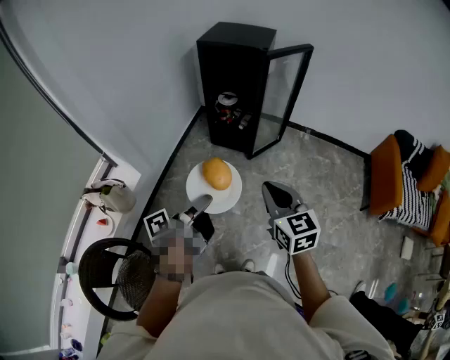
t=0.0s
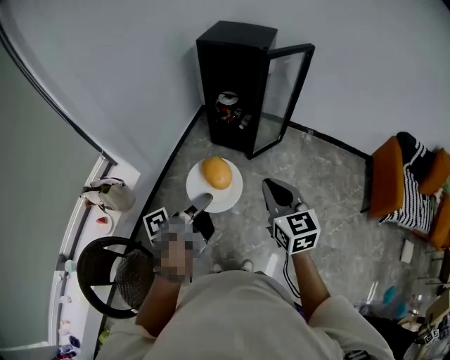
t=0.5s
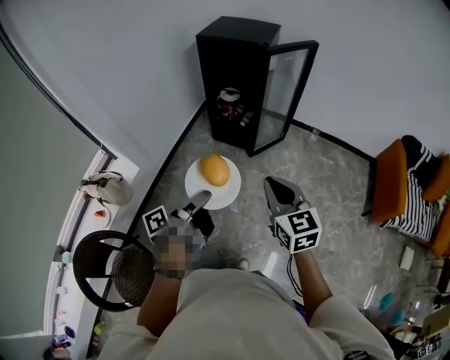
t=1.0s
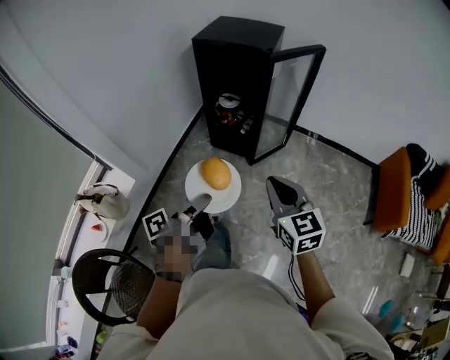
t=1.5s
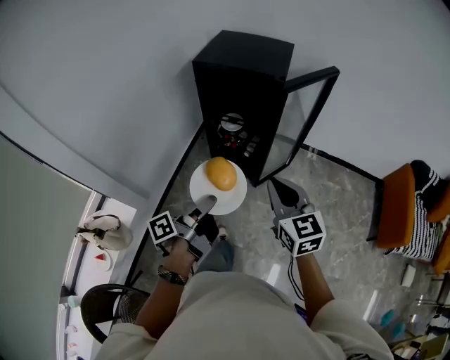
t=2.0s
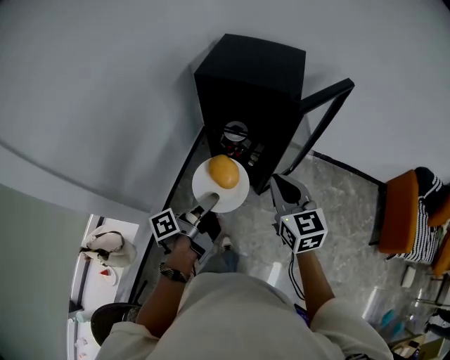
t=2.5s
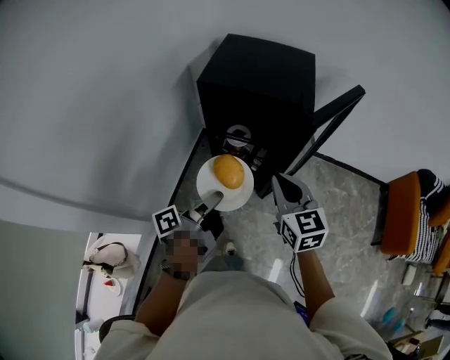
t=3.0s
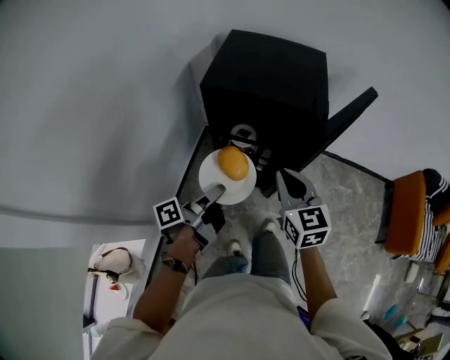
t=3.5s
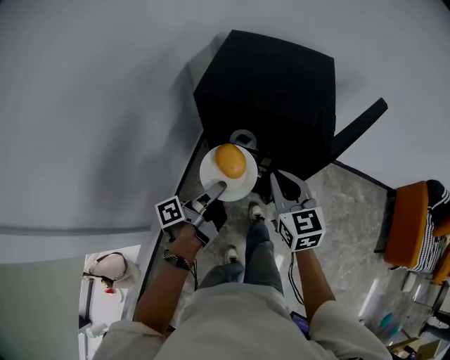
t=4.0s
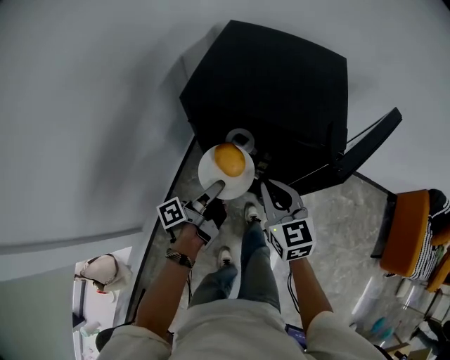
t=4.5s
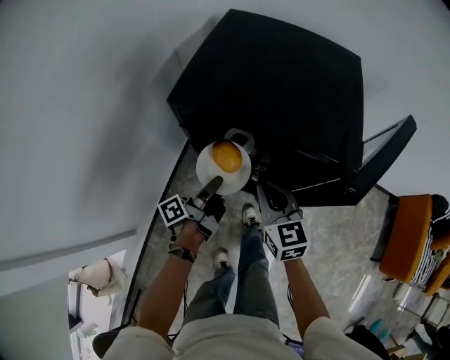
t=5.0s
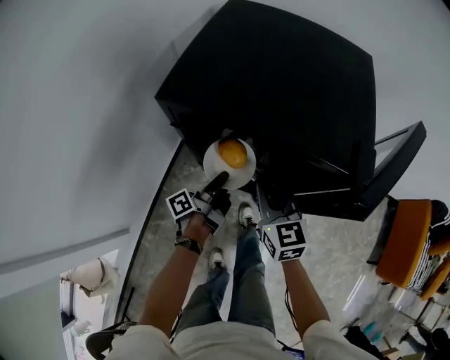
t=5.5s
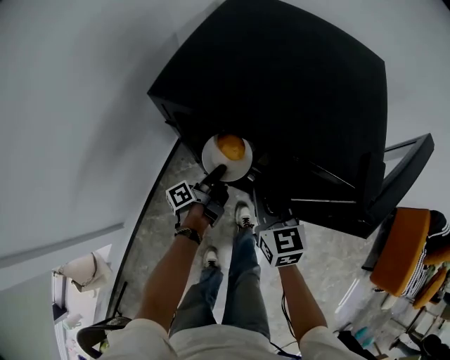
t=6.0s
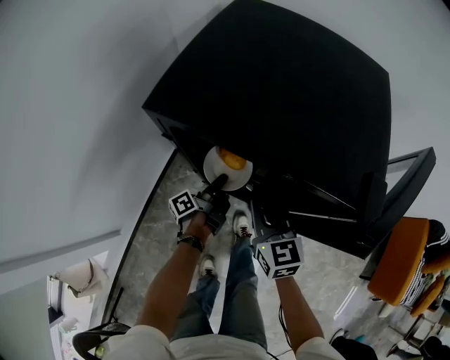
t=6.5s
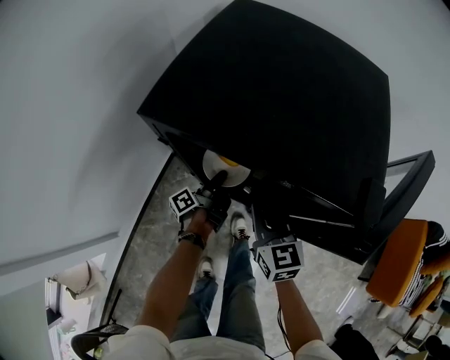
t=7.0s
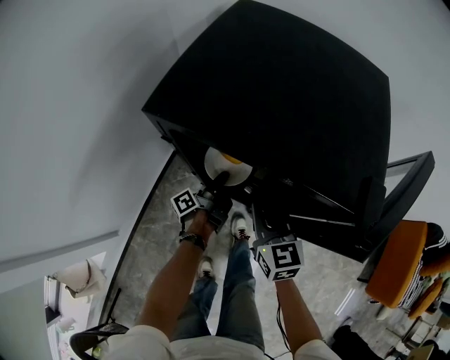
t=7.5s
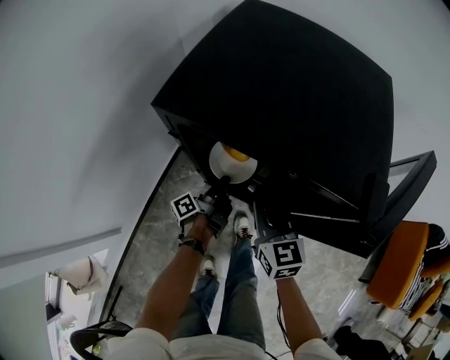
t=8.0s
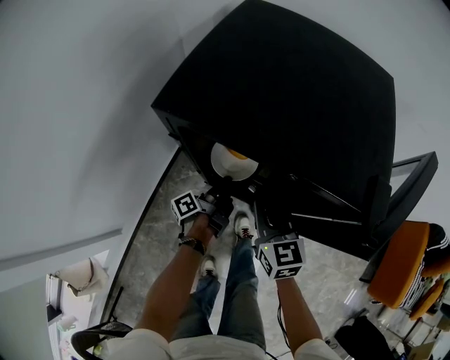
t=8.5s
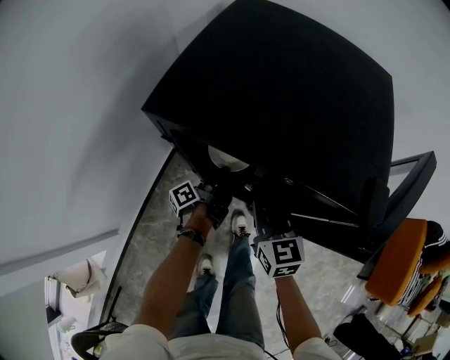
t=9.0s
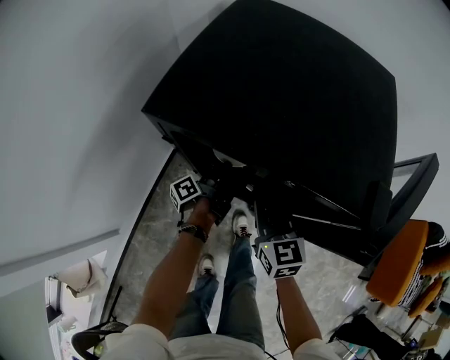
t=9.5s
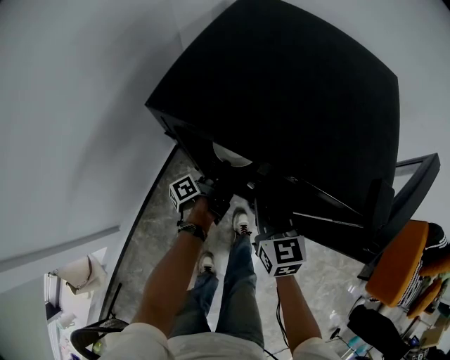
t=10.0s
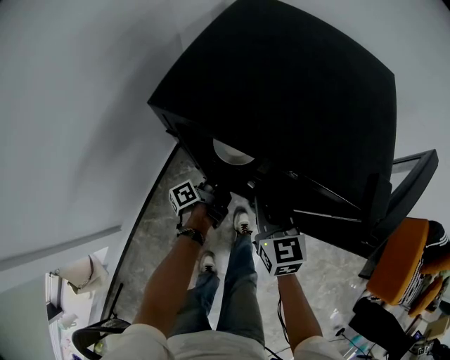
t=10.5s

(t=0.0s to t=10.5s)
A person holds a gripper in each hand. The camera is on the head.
t=0.0s - t=2.0s: The right gripper shifts by roughly 25 cm.
t=2.0s - t=4.0s: The right gripper ends up approximately 30 cm from where it was.
t=4.0s - t=6.5s: The right gripper travels downward by about 15 cm.

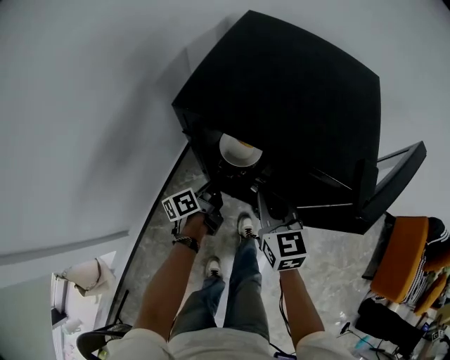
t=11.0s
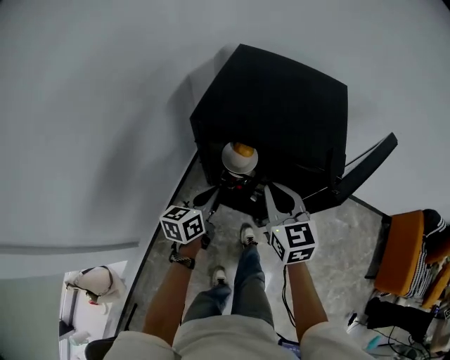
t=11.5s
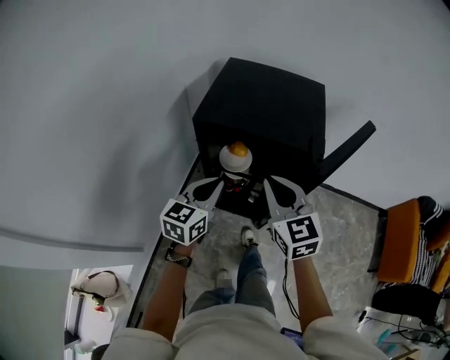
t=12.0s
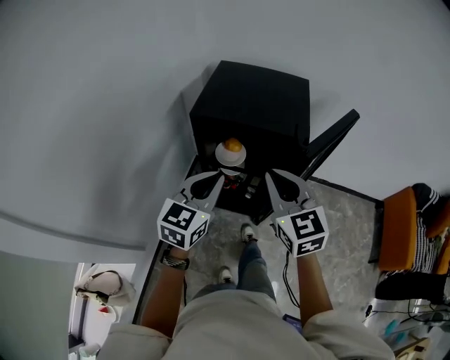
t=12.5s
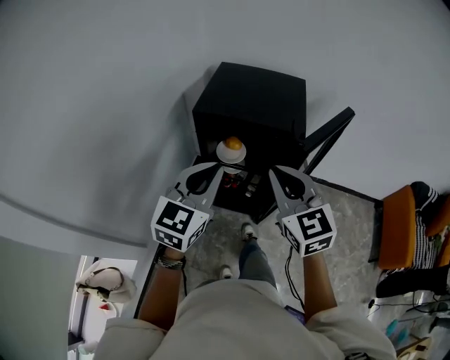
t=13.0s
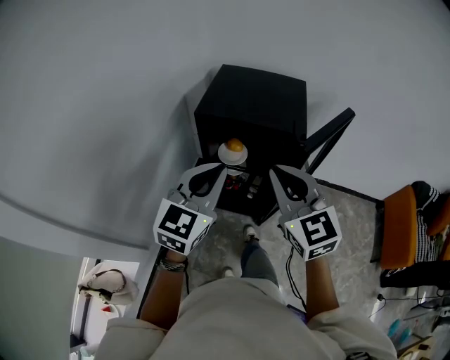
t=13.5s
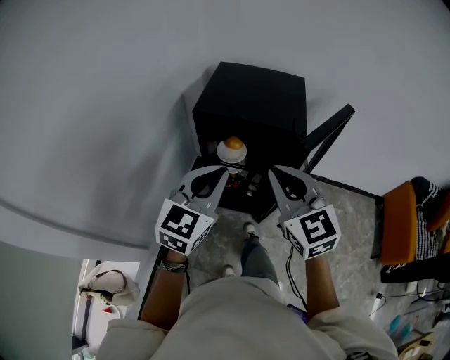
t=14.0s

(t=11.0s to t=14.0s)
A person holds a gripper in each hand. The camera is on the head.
t=11.0s - t=12.5s: The right gripper goes some 25 cm upward.
t=12.5s - t=14.0s: The right gripper changes place by about 5 cm.

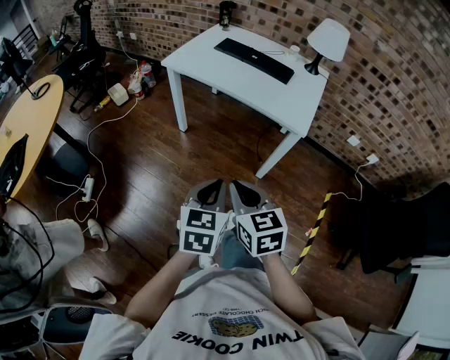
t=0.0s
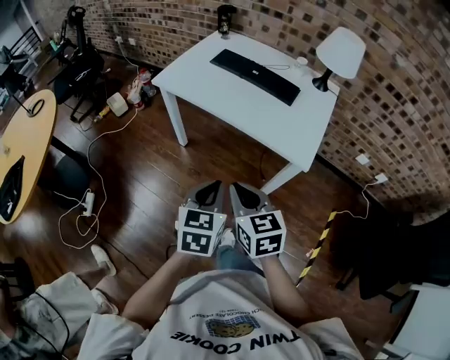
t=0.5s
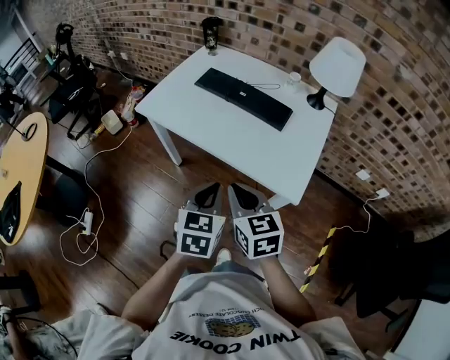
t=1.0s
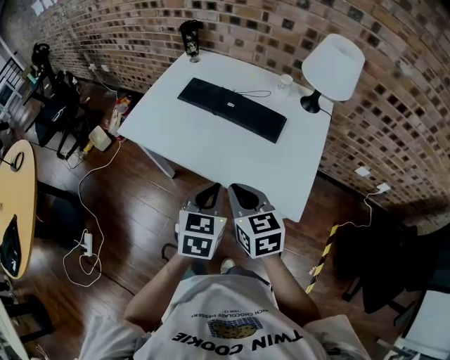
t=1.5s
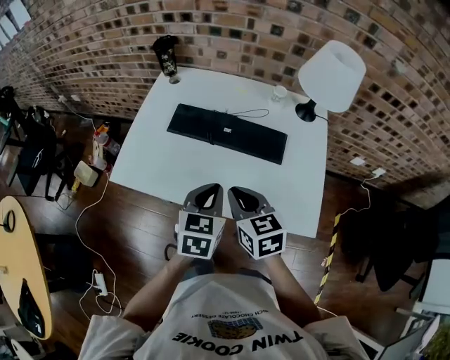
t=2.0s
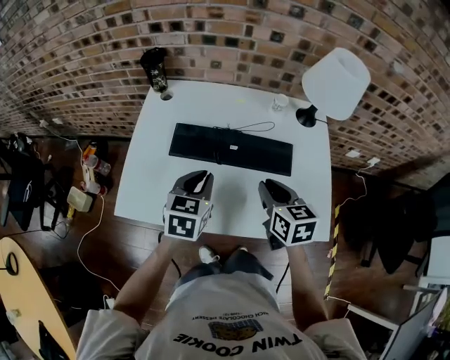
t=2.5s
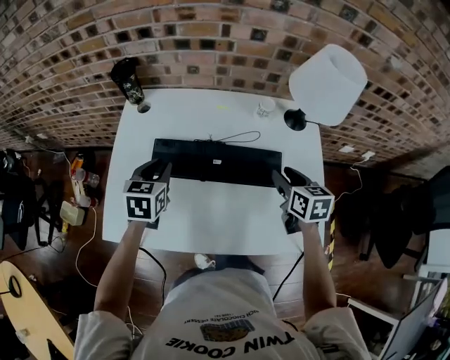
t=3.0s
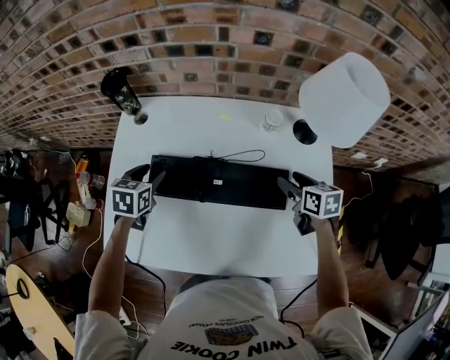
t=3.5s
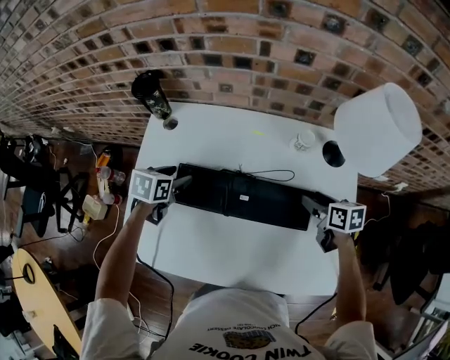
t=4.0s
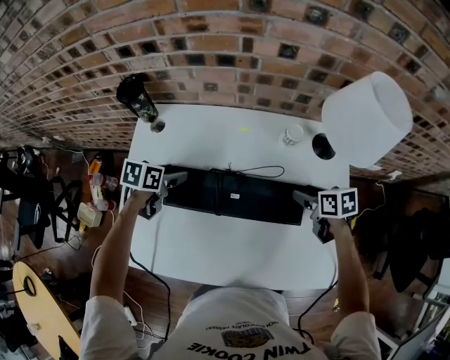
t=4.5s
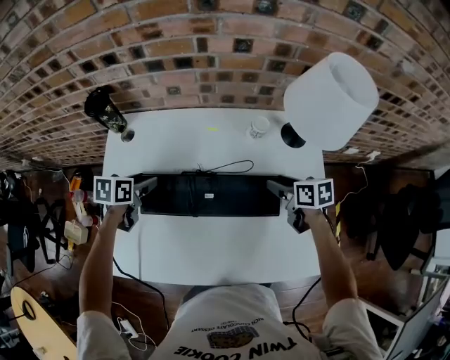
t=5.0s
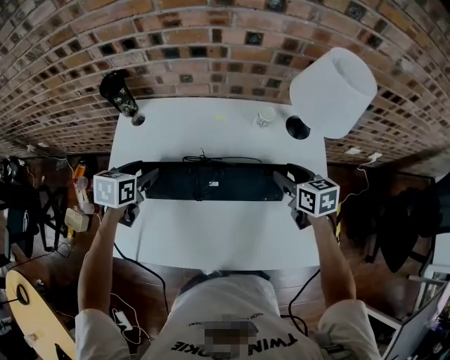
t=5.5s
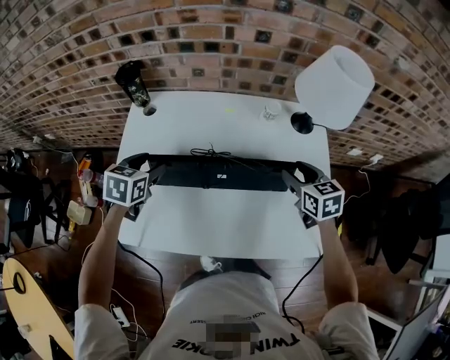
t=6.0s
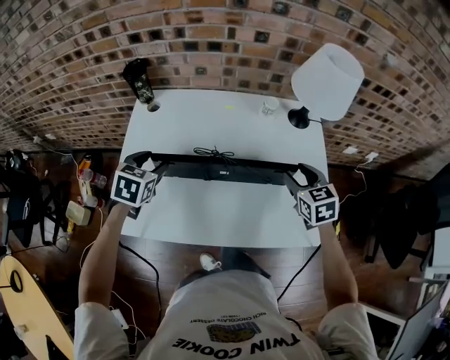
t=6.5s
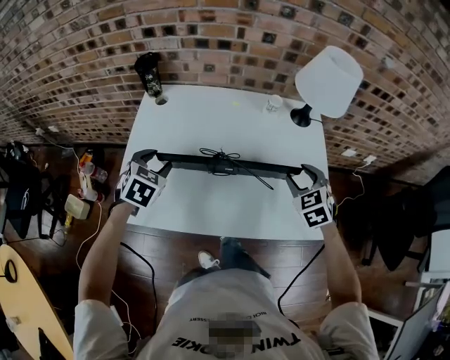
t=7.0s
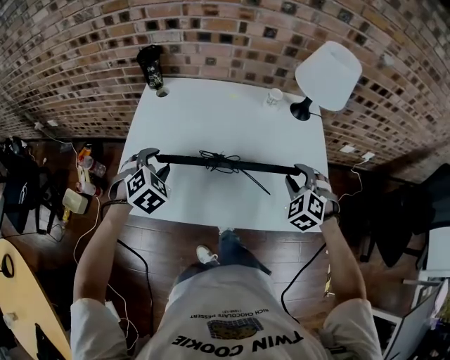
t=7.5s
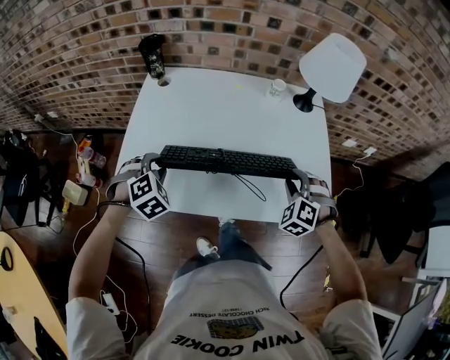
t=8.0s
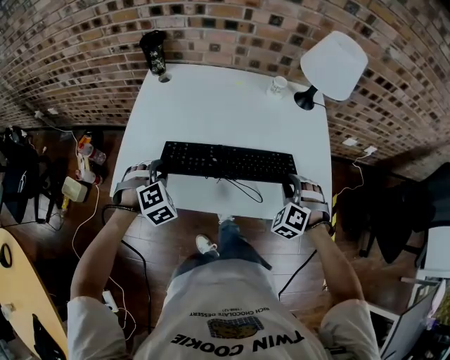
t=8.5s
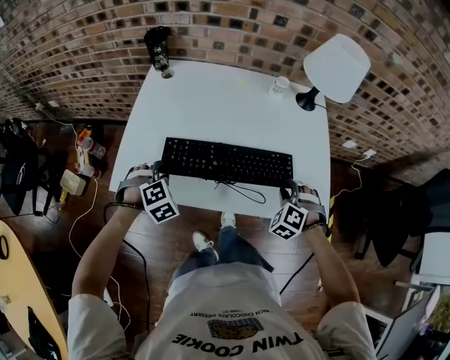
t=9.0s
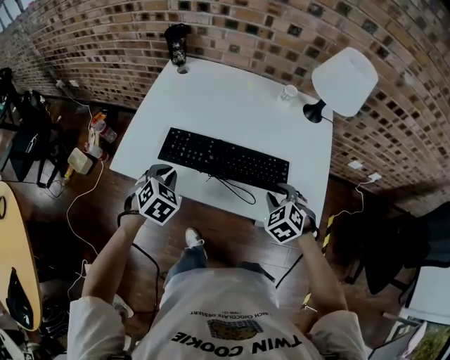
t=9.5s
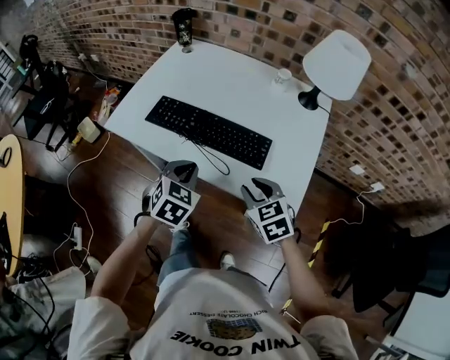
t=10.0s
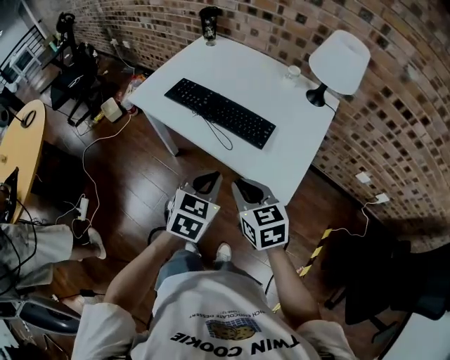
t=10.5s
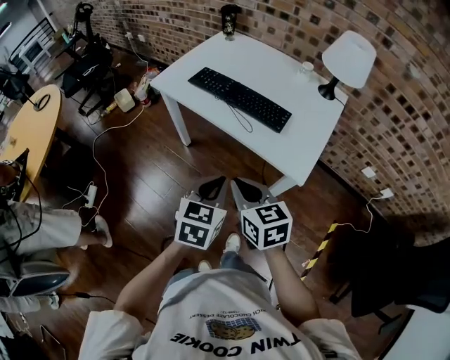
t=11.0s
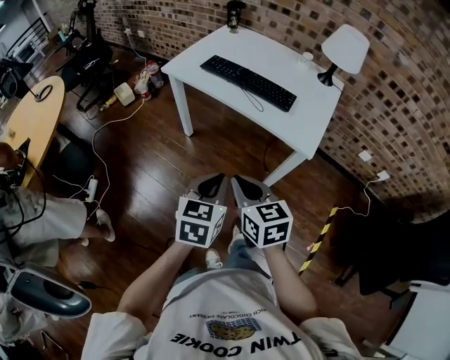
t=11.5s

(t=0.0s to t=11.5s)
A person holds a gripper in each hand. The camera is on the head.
t=0.0s - t=2.0s: Both grippers are carried forward, roughly 50 cm.
t=2.0s - t=4.0s: The right gripper is displaced forward, to the right and downward by about 35 cm, changes its angle by some 30 degrees, and opens. Meanwhile the left gripper shifts some 40 cm forward, to the left and downward, rotates approximately 30 degrees, and opens its fingers.
t=4.0s - t=6.0s: The grippers both shift upward and backward by roughly 10 cm. The right gripper changes its angle by roughly 30 degrees.
t=6.0s - t=7.5s: Both grippers move backward, approximately 10 cm. The right gripper twists about 60 degrees counterclockwise, seen from behind. Meanwhile the left gripper twists about 40 degrees clockwise, seen from behind.
t=7.5s - t=9.5s: The left gripper moves backward, approximately 10 cm, rotates roughly 20 degrees, and closes its fingers; the right gripper travels backward and downward by some 10 cm.
t=9.5s - t=11.5s: The left gripper ends up roughly 50 cm from where it was, and twists approximately 40 degrees counterclockwise, seen from behind. The right gripper shifts by roughly 40 cm, swivels approximately 50 degrees, and closes its fingers.

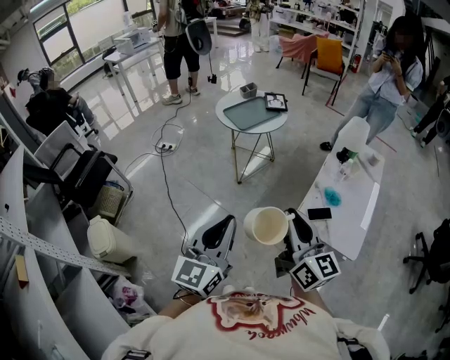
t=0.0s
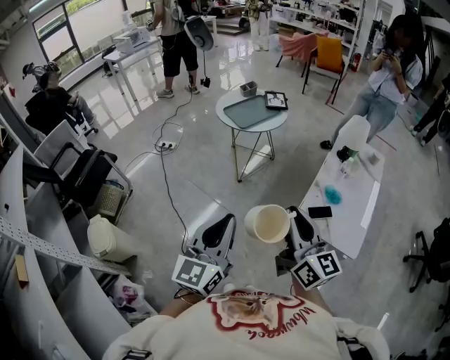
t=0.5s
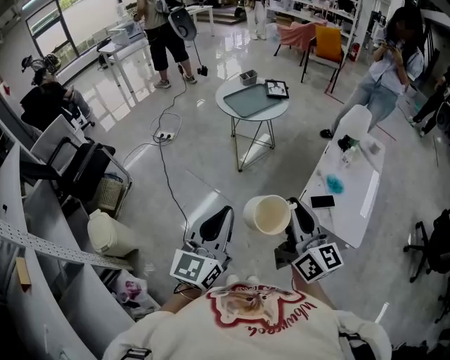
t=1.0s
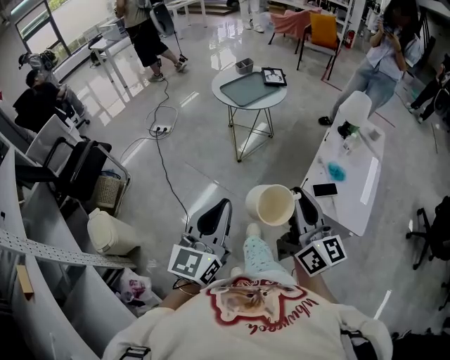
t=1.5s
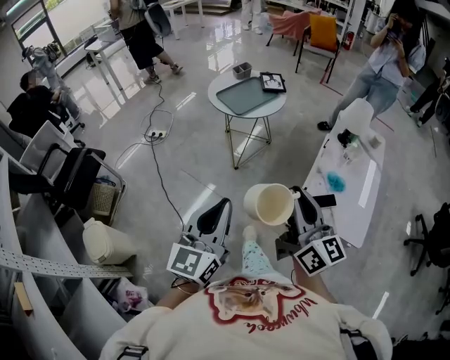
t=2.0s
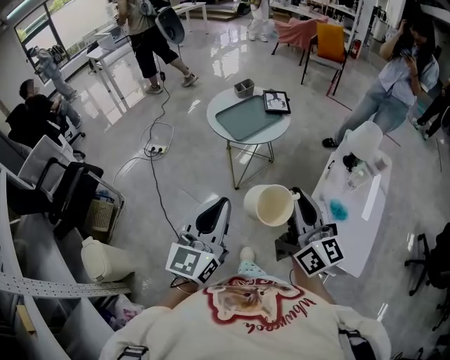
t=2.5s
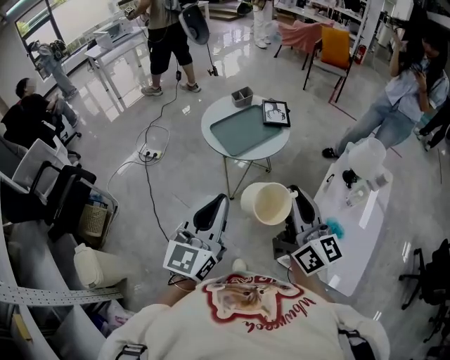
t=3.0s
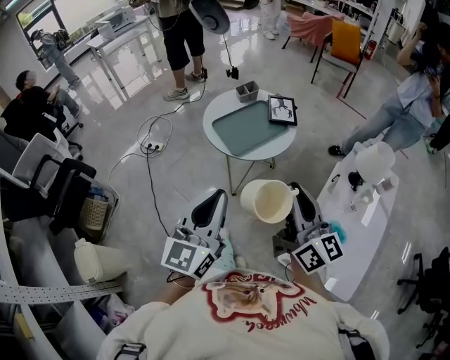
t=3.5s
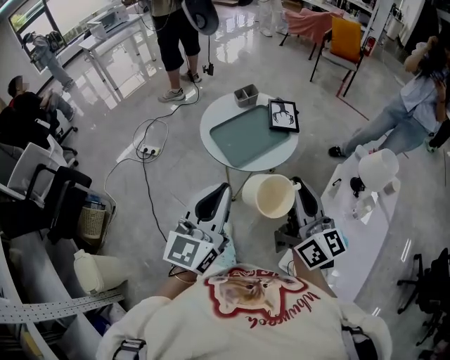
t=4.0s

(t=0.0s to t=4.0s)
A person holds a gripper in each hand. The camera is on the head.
t=0.0s - t=2.0s: Both grippers travel together forward, some 5 cm.
t=2.0s - t=4.0s: The grippers both shift forward by about 35 cm.
